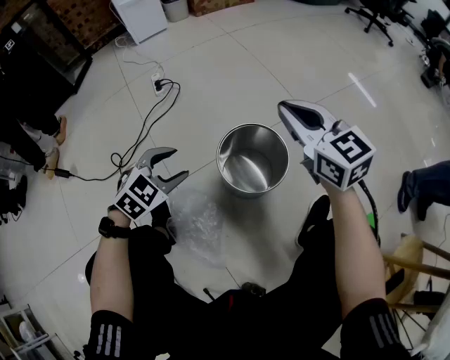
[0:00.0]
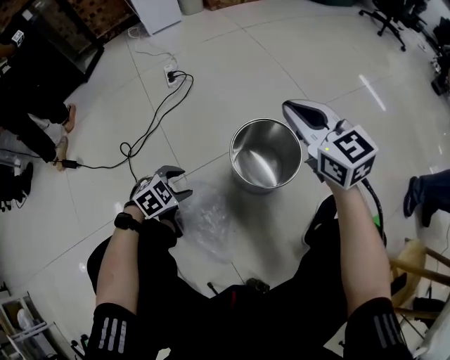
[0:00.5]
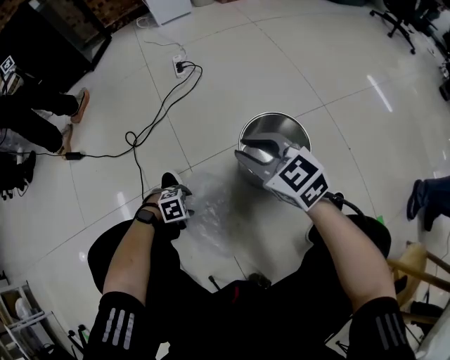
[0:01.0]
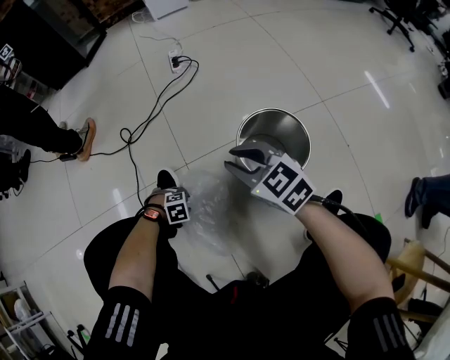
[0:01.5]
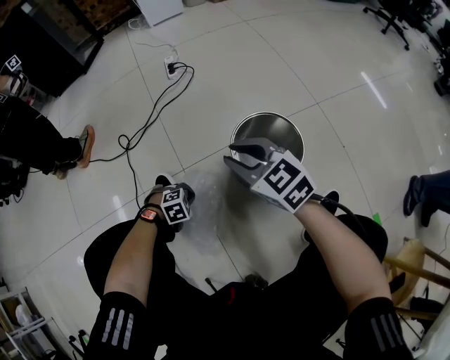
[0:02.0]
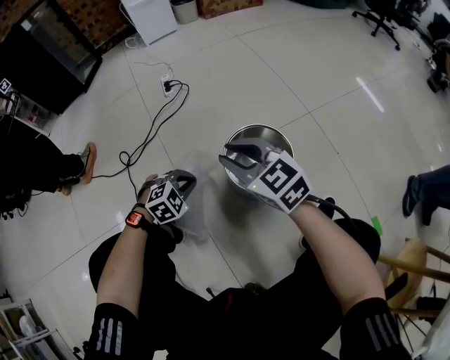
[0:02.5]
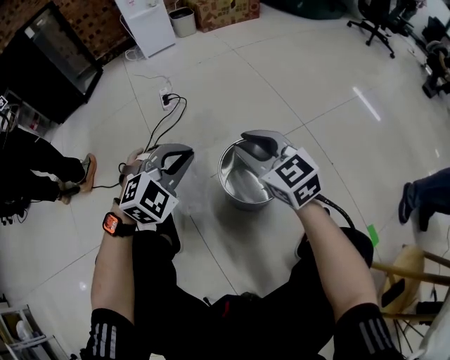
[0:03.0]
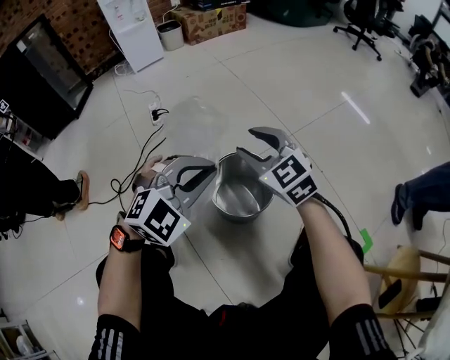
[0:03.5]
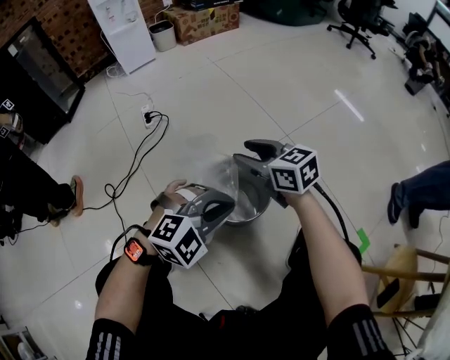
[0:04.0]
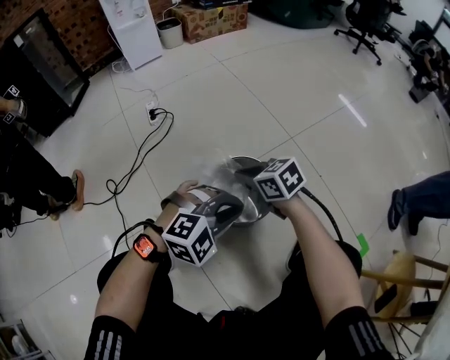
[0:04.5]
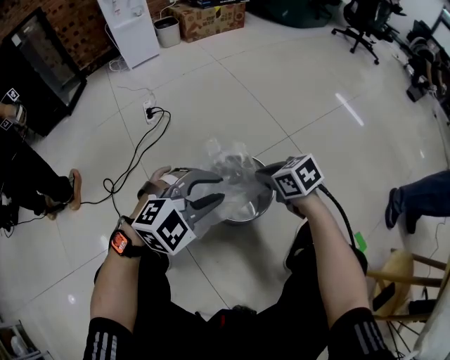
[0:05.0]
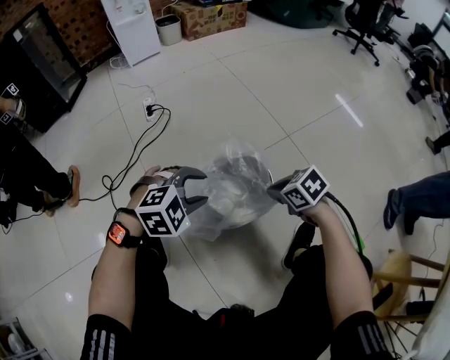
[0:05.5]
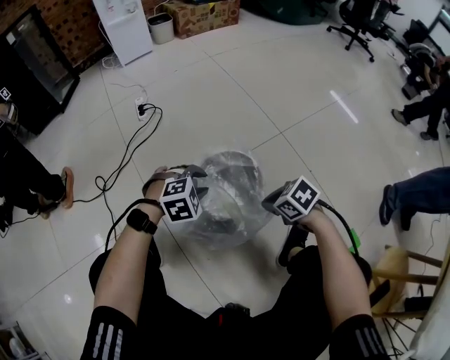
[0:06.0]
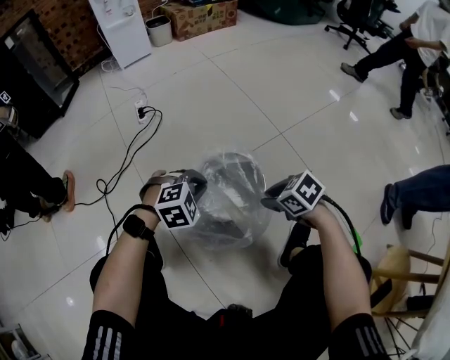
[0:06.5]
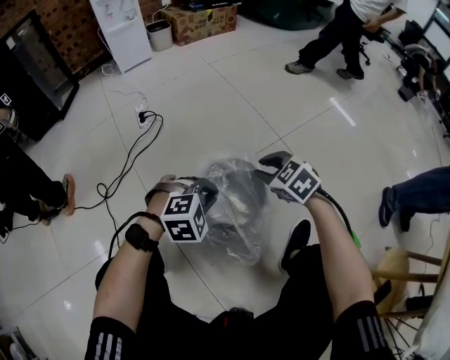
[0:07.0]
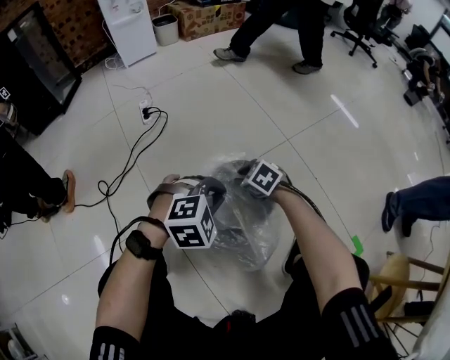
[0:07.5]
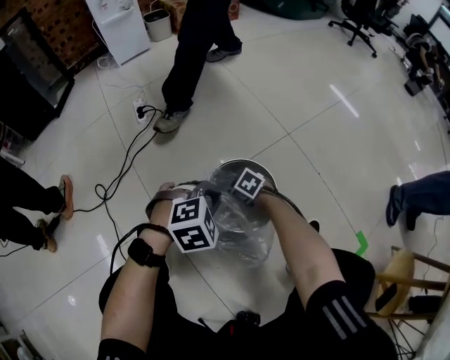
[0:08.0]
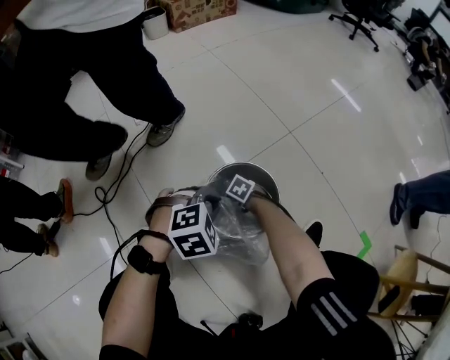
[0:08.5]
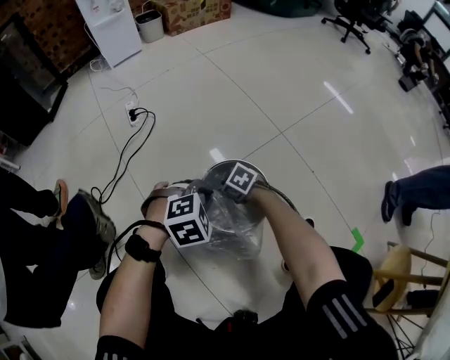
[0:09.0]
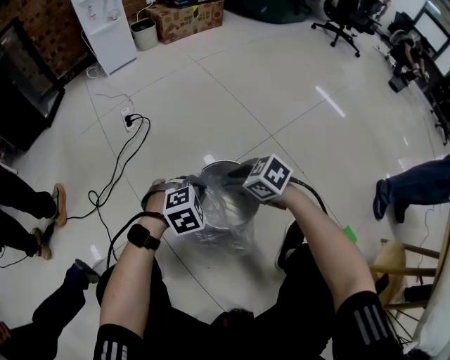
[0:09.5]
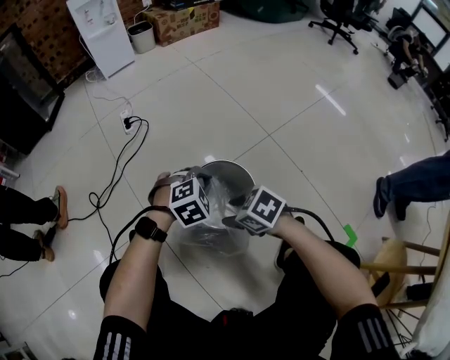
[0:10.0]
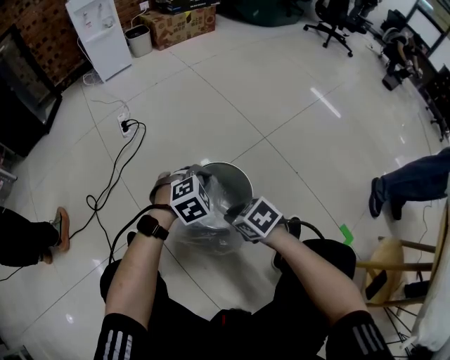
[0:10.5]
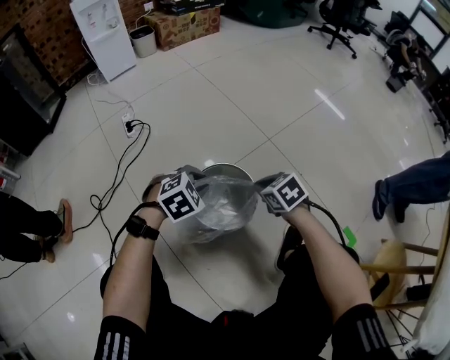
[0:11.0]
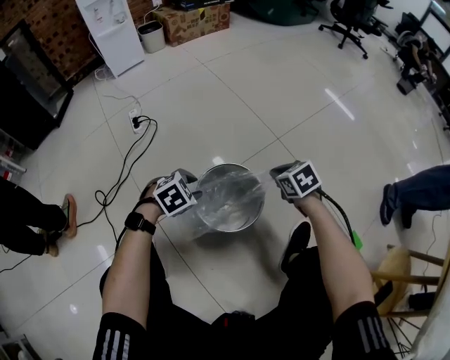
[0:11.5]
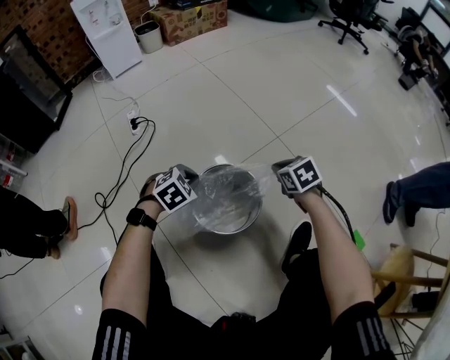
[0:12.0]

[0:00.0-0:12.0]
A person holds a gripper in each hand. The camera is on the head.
0:00.0 to 0:02.0: The right gripper shifts by approximately 20 cm, rotates about 20 degrees, and opens its fingers; the left gripper travels downward by some 25 cm, points its fingers approximately 30 degrees further downward, and closes its fingers.
0:02.0 to 0:04.0: The right gripper moves approximately 20 cm, swivels about 20 degrees, and opens its fingers. The left gripper shifts some 30 cm upward, and angles its fingers upward, by some 40 degrees.
0:04.0 to 0:06.0: The right gripper moves roughly 20 cm, tilts its fingers approximately 40 degrees downward, and closes up. The left gripper moves downward, some 10 cm, rotates approximately 30 degrees, and opens up.
0:06.0 to 0:08.0: The left gripper closes; the right gripper ends up about 25 cm from where it was, and opens.
0:08.0 to 0:10.0: The right gripper heads upward, covering roughly 20 cm, and opens, while the left gripper changes place by roughly 5 cm.
0:10.0 to 0:12.0: The left gripper moves roughly 10 cm, and opens, then closes again. The right gripper moves some 25 cm, swivels about 30 degrees, and closes its fingers.

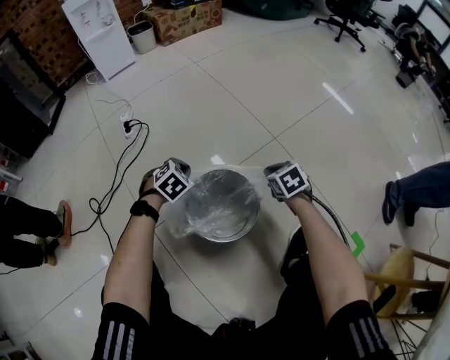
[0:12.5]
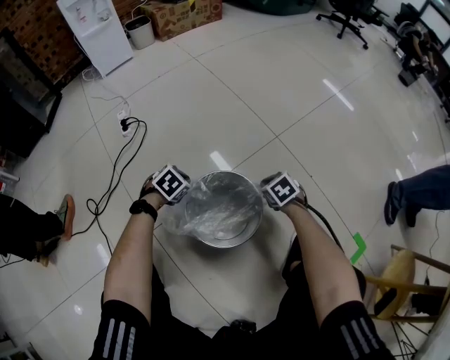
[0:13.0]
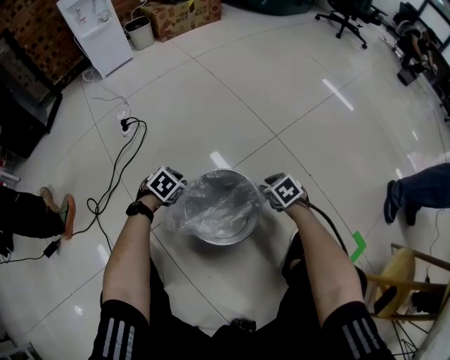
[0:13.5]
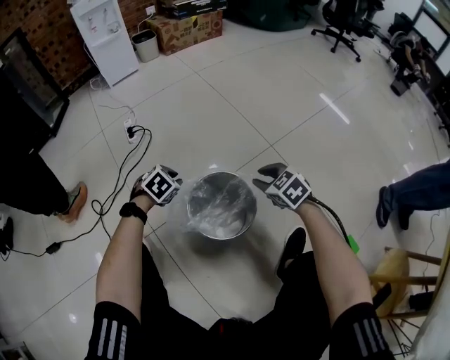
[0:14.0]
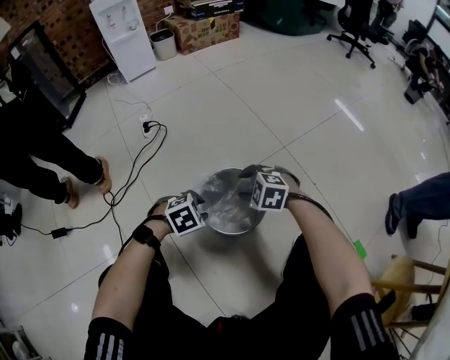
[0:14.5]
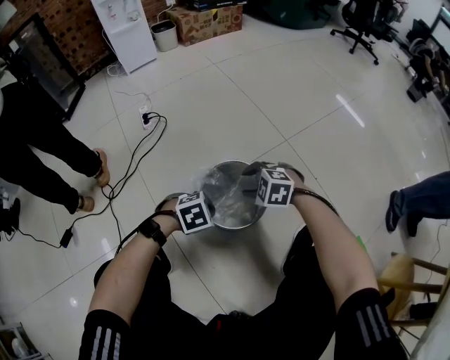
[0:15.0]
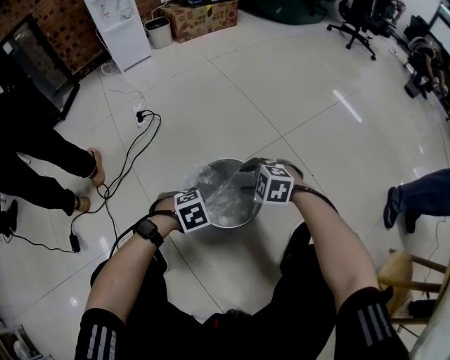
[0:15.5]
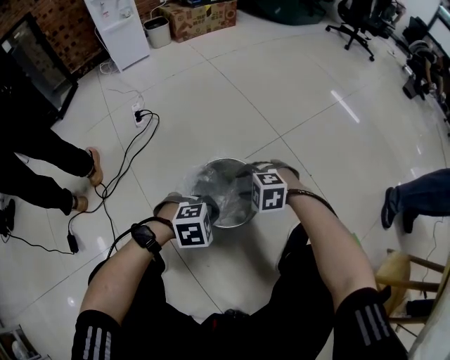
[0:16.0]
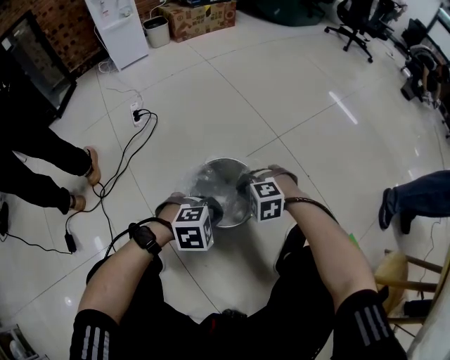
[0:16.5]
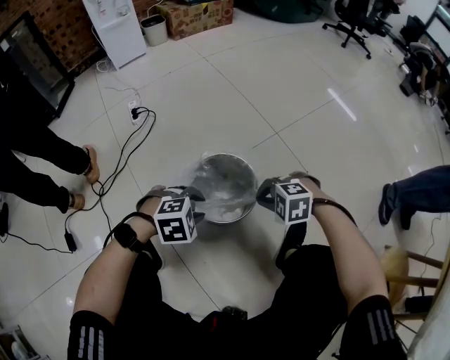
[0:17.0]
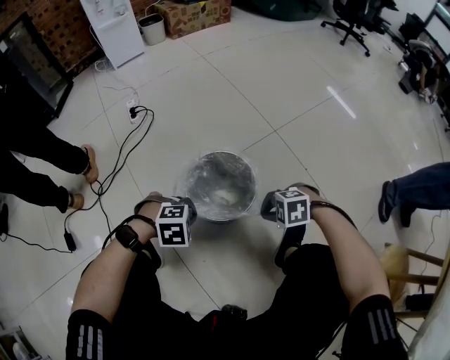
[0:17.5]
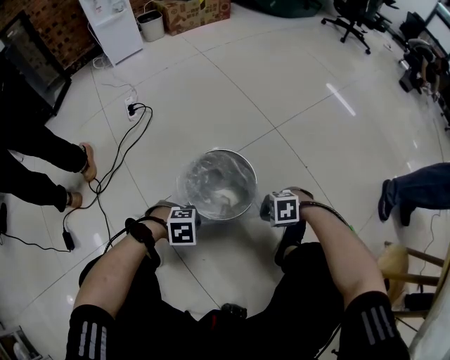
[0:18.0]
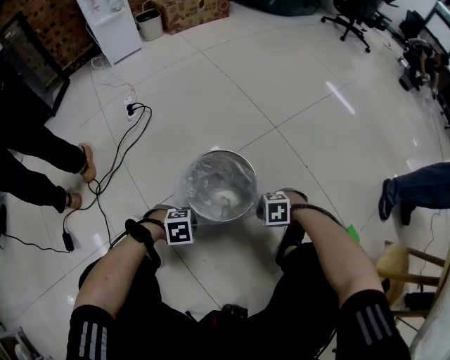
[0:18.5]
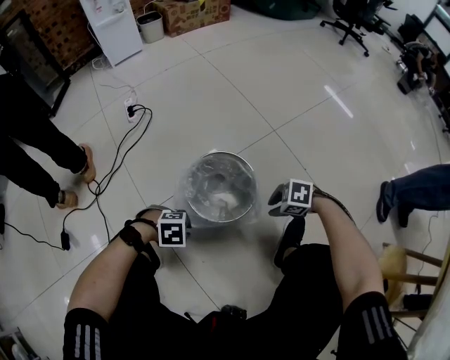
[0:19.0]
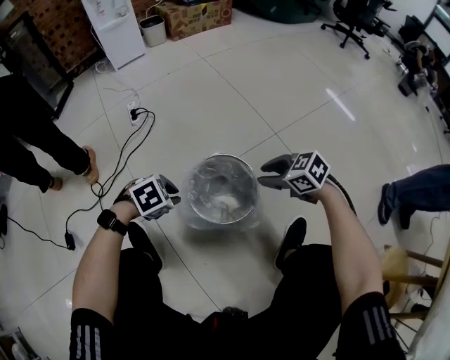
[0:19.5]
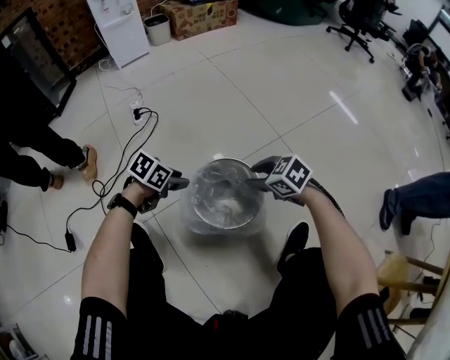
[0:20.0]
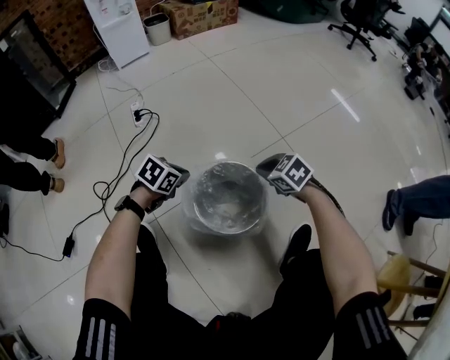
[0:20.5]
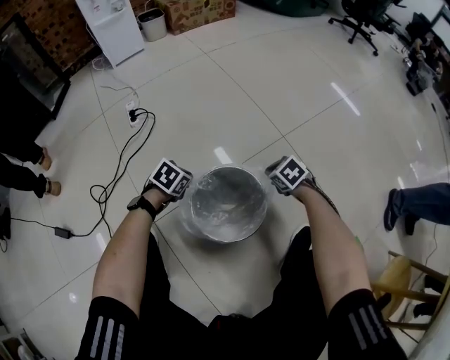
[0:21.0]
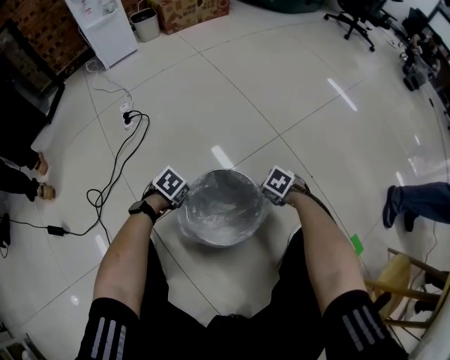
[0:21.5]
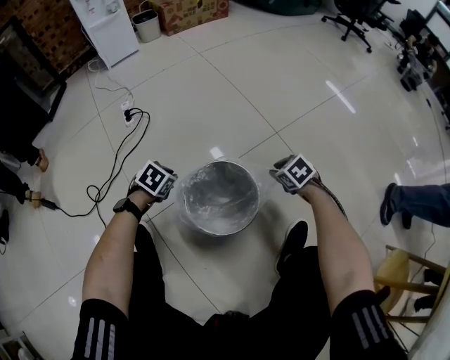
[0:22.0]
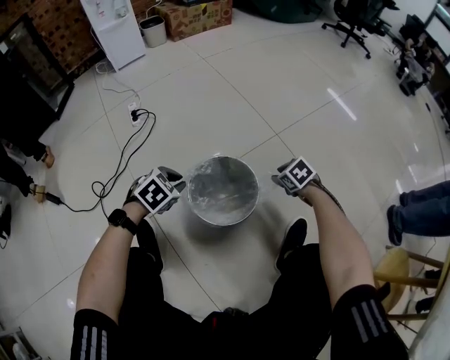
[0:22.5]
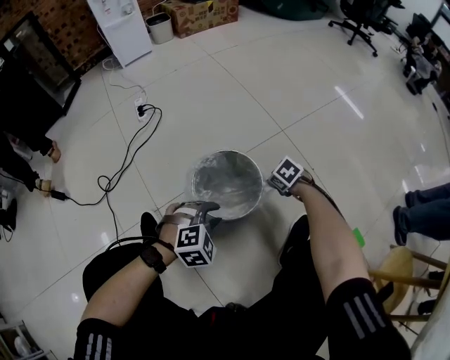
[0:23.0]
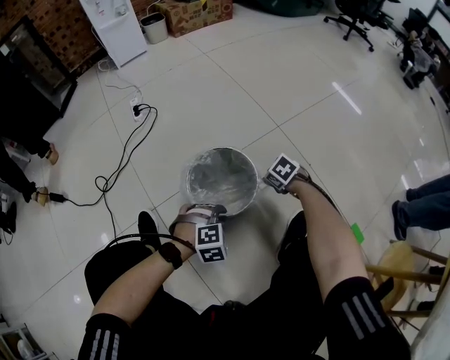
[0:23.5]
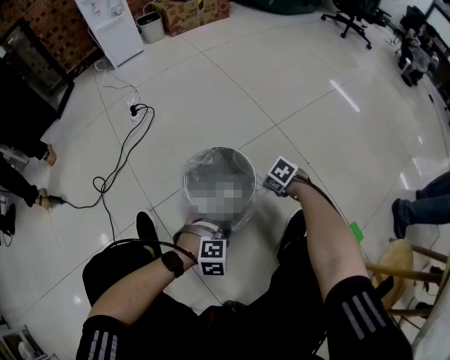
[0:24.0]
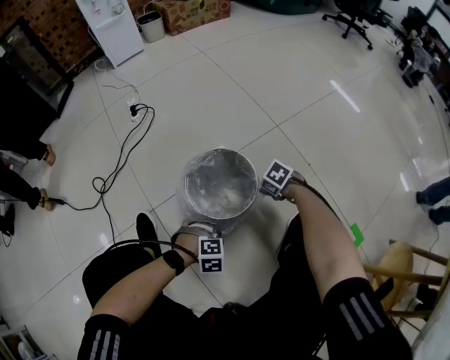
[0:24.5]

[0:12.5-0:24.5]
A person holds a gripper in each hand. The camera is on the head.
0:12.5 to 0:14.5: The right gripper heads to the left and backward, covering approximately 15 cm, rotates around the line of its fingers by roughly 50 degrees, counterclockwise from behind, and opens. The left gripper goes some 15 cm backward, and opens.
0:14.5 to 0:16.5: The left gripper ends up roughly 10 cm from where it was, rotates some 20 degrees, and closes its fingers, while the right gripper changes place by roughly 5 cm, and closes up.
0:16.5 to 0:18.5: The left gripper shifts some 10 cm downward, turns by approximately 20 degrees, and opens and closes again. The right gripper shifts by some 15 cm, and changes its angle by approximately 30 degrees.
0:18.5 to 0:20.5: The right gripper moves about 20 cm, swivels some 40 degrees, and opens, then closes once more. Meanwhile the left gripper shifts by approximately 25 cm, twists some 40 degrees counterclockwise, seen from behind, and opens and closes again.
0:20.5 to 0:22.5: The right gripper shifts by roughly 15 cm, and opens, while the left gripper moves roughly 10 cm downward and comes back, and turns by roughly 20 degrees.
0:22.5 to 0:24.5: The right gripper moves roughly 10 cm, while the left gripper moves some 25 cm, and turns by about 40 degrees.

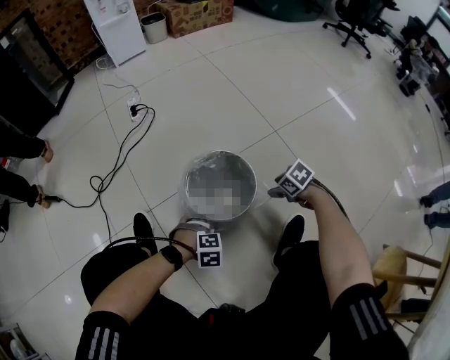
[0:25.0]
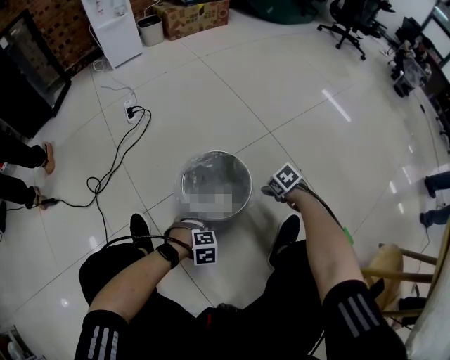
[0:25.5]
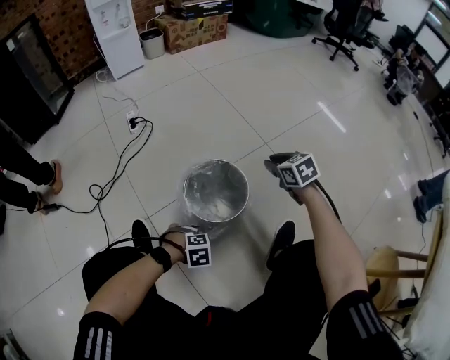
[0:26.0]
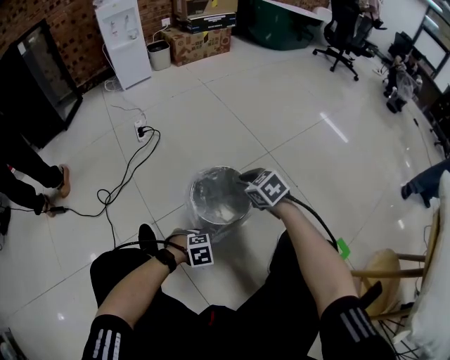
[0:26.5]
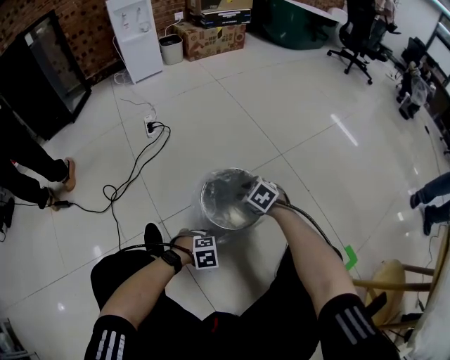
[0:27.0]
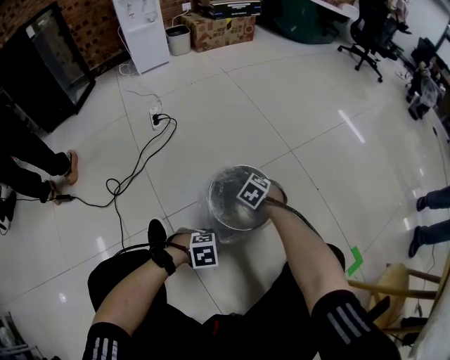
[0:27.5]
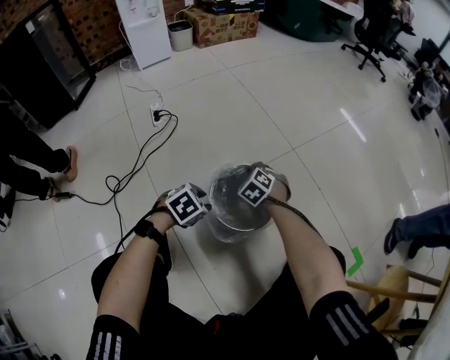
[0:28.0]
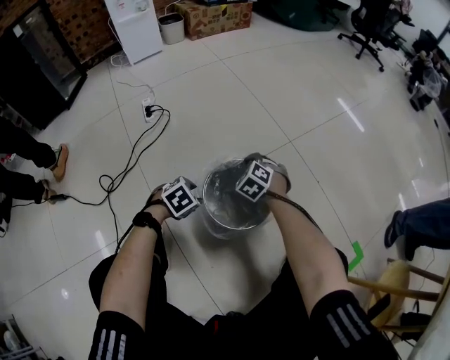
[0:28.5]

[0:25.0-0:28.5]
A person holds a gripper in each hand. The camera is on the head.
0:25.0 to 0:27.0: The right gripper changes place by approximately 20 cm, rotates approximately 30 degrees, and closes its fingers.
0:27.0 to 0:28.5: The right gripper ends up roughly 10 cm from where it was, turns by some 20 degrees, and closes up. The left gripper shifts by approximately 20 cm, and rotates some 30 degrees.
